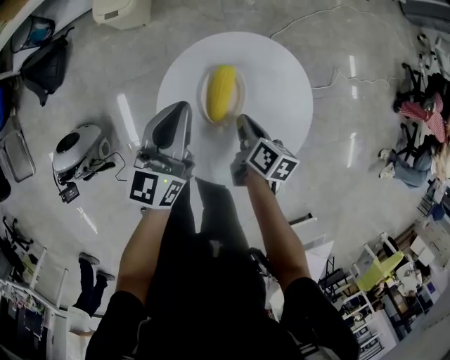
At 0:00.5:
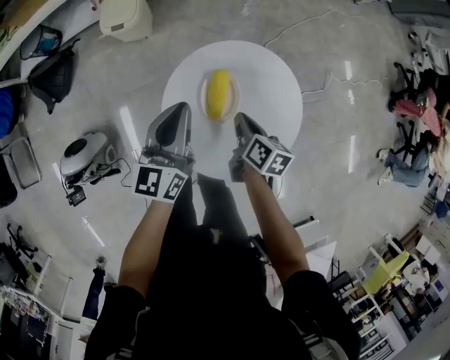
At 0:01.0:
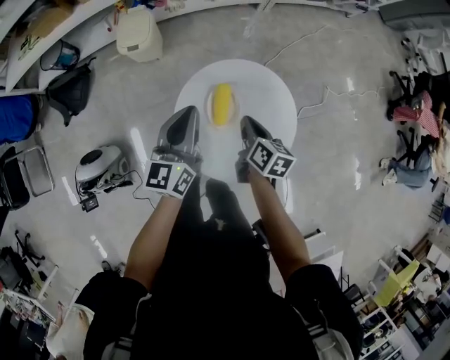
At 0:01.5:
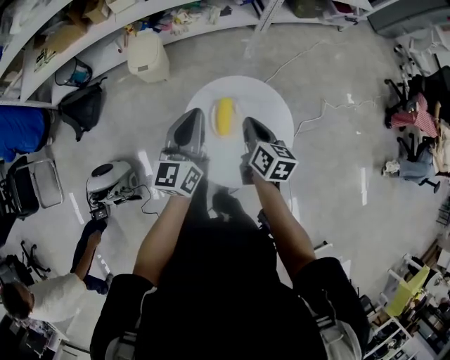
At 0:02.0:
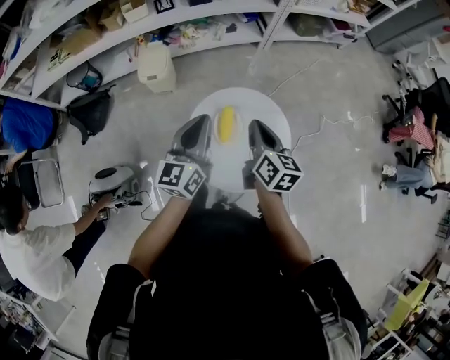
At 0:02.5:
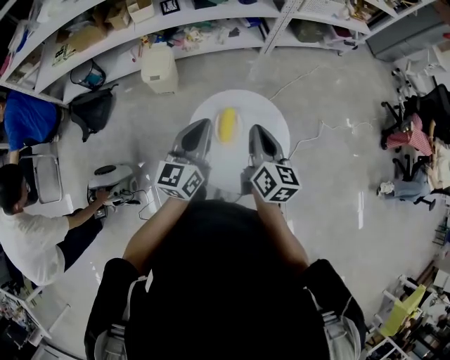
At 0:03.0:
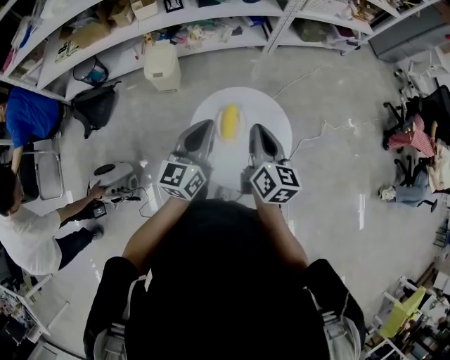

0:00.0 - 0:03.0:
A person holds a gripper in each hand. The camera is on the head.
0:00.0 - 0:01.5: The left gripper moves upward, about 15 cm.
0:01.5 - 0:03.0: The left gripper ends up roughly 5 cm from where it was.

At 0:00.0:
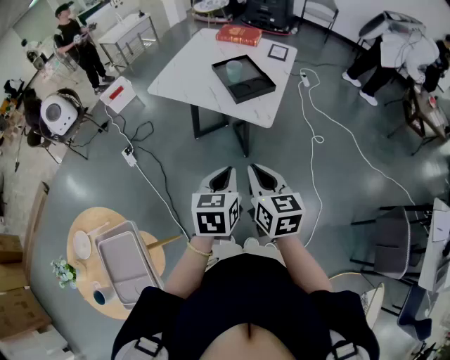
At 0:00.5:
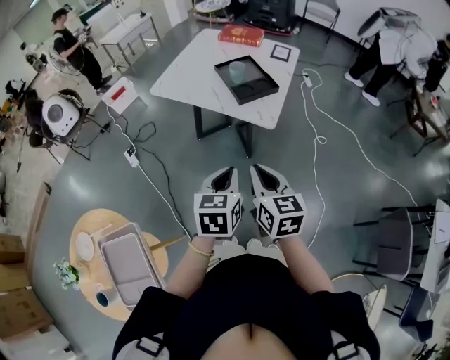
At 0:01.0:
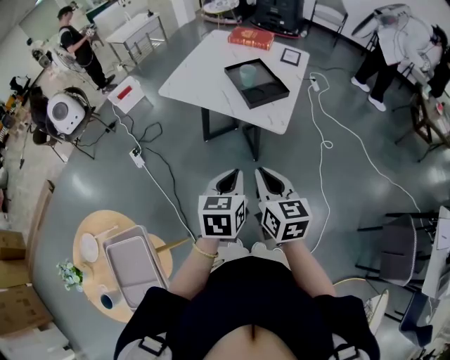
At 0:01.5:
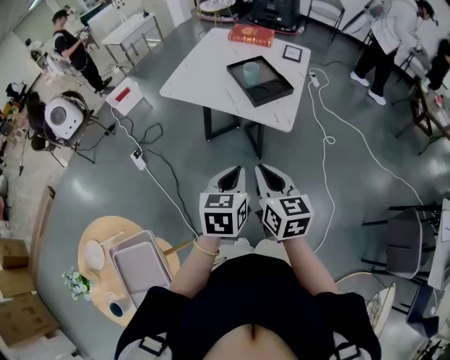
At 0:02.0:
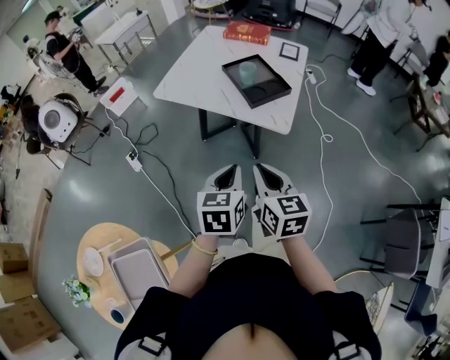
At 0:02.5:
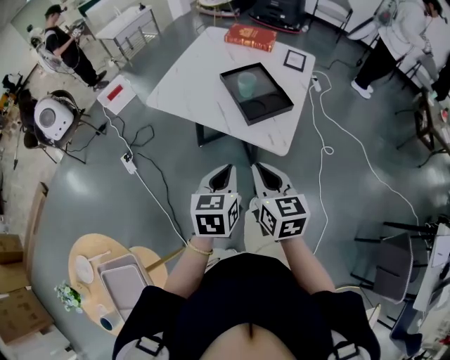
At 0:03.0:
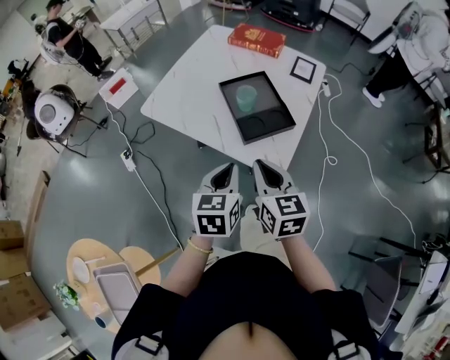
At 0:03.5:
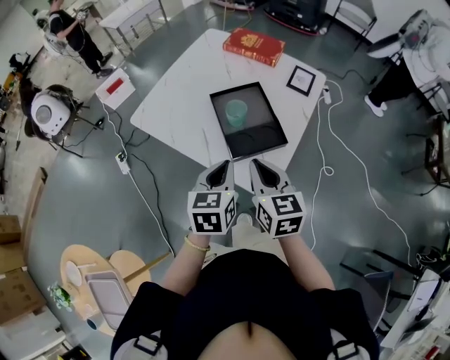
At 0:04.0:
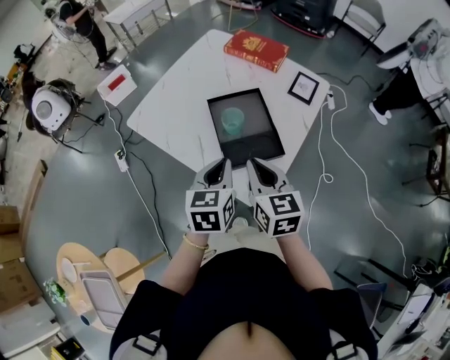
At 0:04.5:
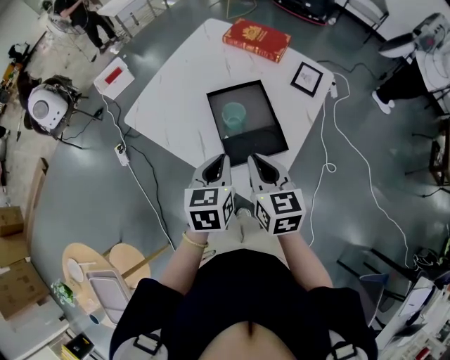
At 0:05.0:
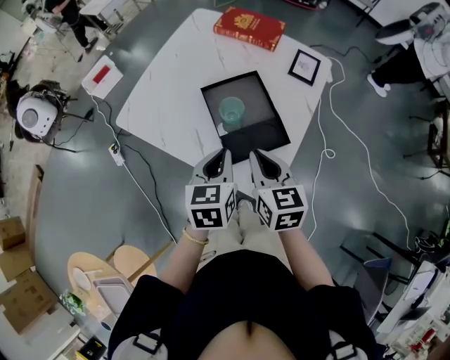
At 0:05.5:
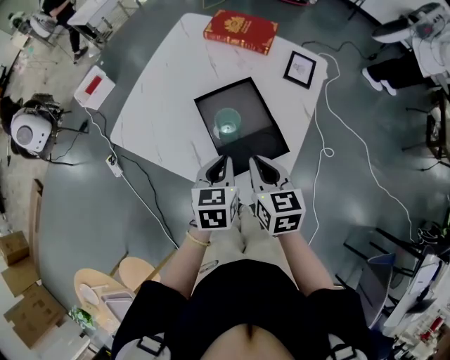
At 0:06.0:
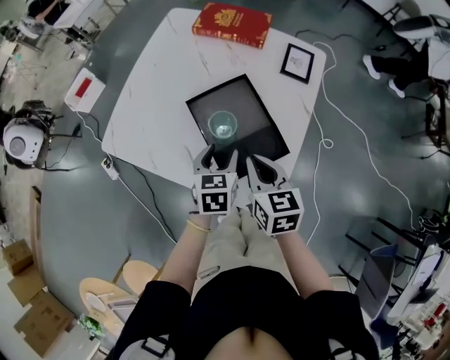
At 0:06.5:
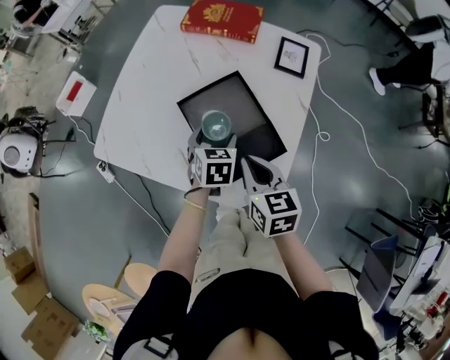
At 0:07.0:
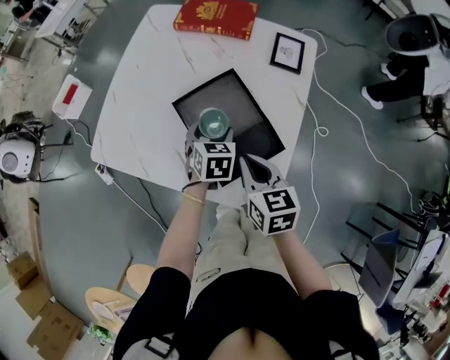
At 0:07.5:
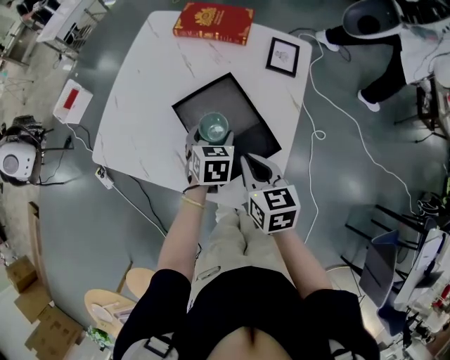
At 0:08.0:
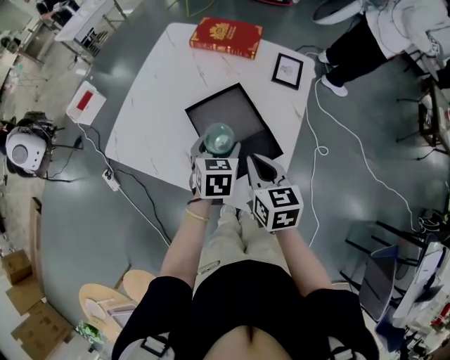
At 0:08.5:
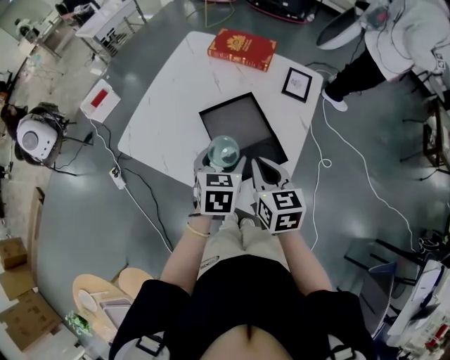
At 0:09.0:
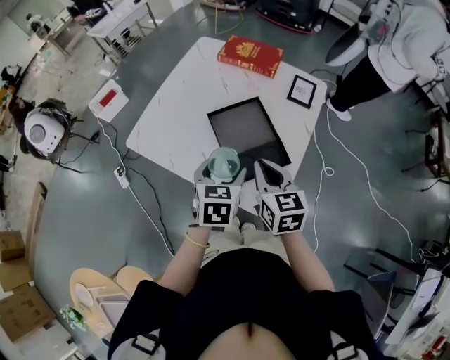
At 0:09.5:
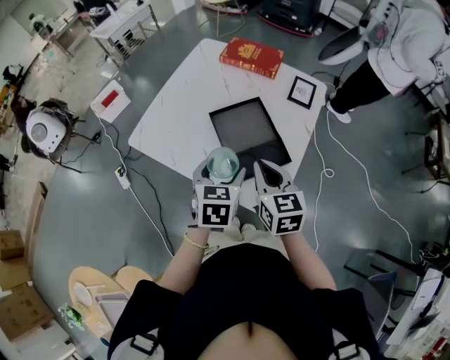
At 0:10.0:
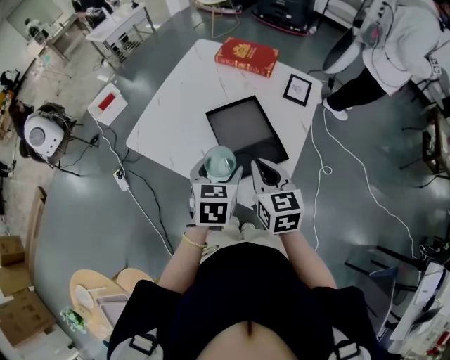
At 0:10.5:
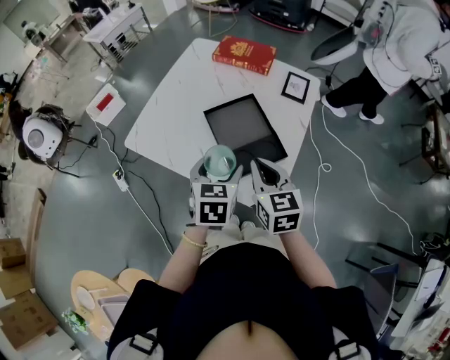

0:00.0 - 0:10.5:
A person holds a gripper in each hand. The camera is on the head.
0:00.0 - 0:02.0: Both grippers move forward and to the left, some 10 cm.
0:02.0 - 0:04.0: Both grippers travel together forward and to the right, some 35 cm.
0:04.0 - 0:06.5: The left gripper goes some 25 cm forward and downward, turns by roughly 30 degrees, and opens, while the right gripper moves downward and forward, approximately 10 cm.
0:06.5 - 0:08.5: The right gripper is displaced upward by approximately 5 cm, while the left gripper is displaced upward and backward by about 15 cm.
0:08.5 - 0:10.5: The left gripper travels backward by roughly 5 cm.

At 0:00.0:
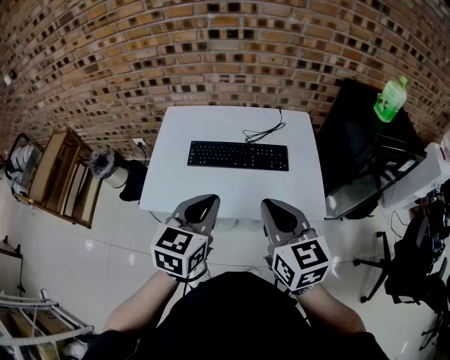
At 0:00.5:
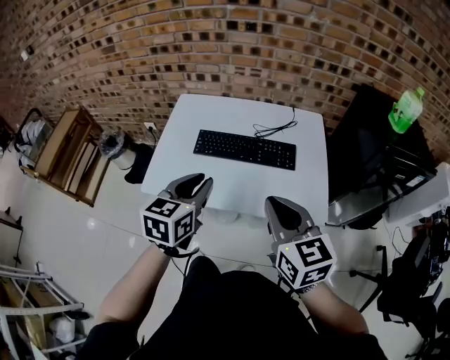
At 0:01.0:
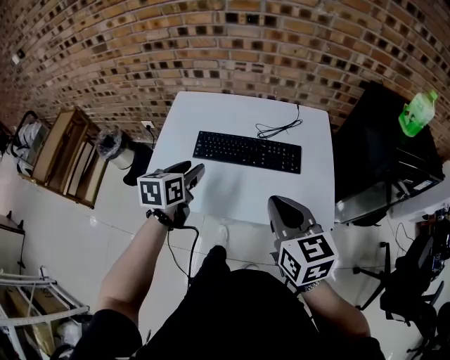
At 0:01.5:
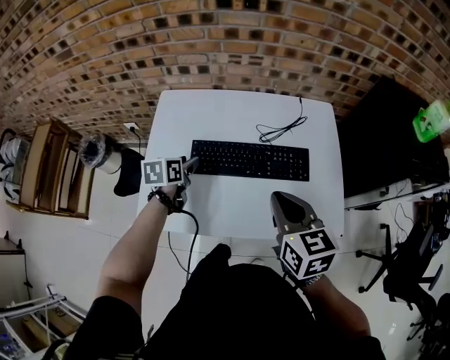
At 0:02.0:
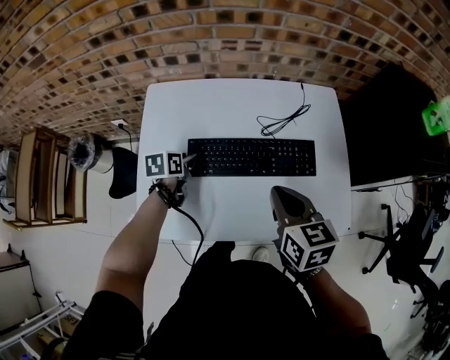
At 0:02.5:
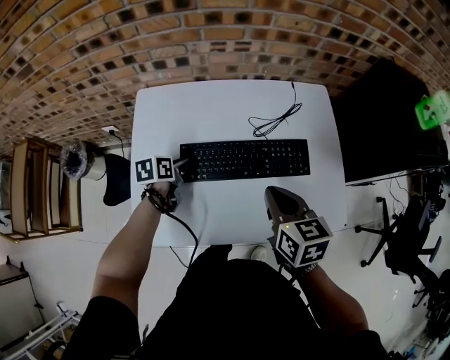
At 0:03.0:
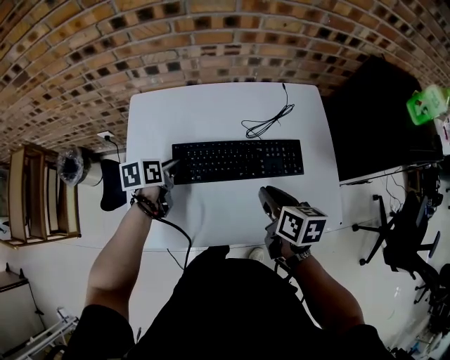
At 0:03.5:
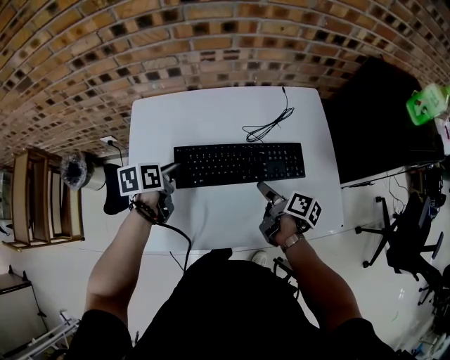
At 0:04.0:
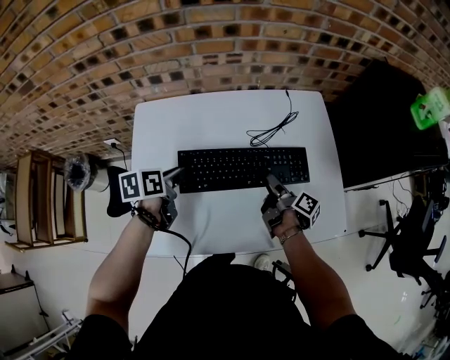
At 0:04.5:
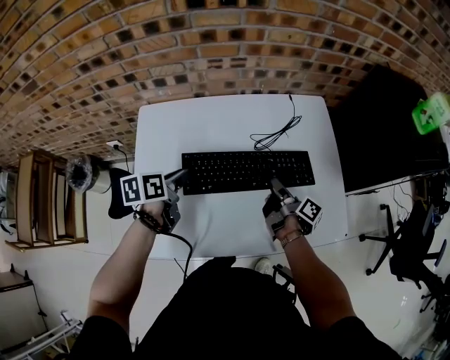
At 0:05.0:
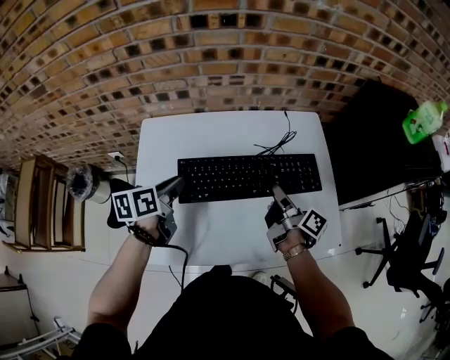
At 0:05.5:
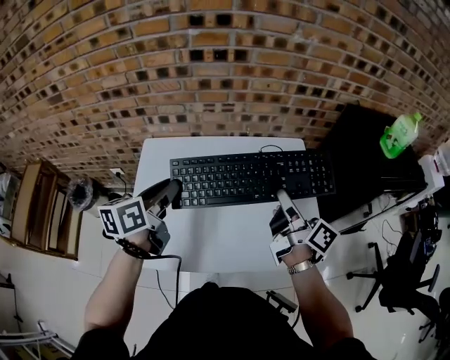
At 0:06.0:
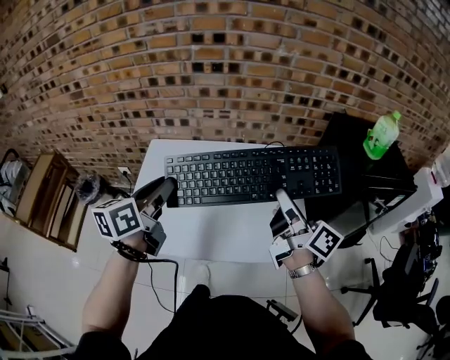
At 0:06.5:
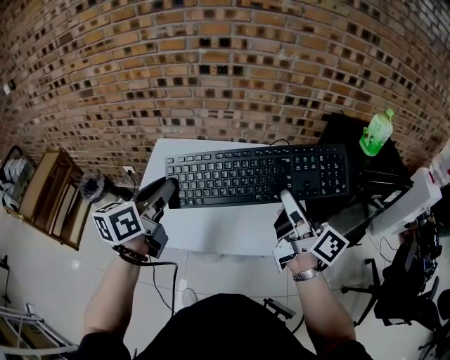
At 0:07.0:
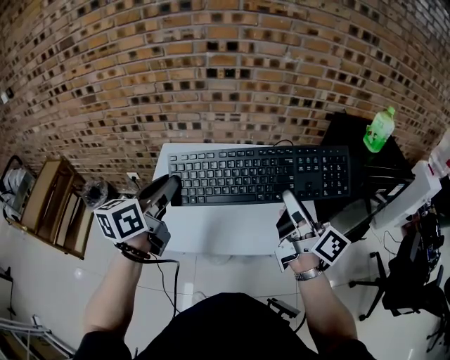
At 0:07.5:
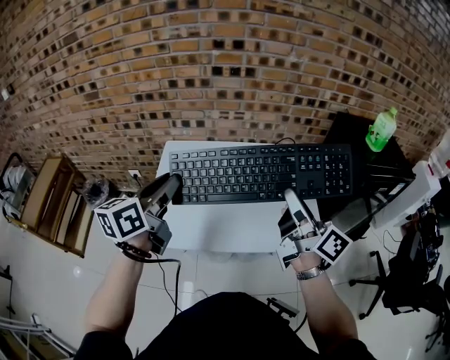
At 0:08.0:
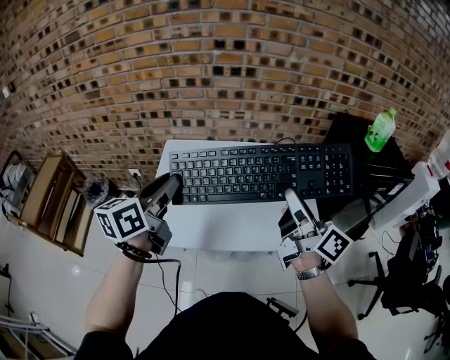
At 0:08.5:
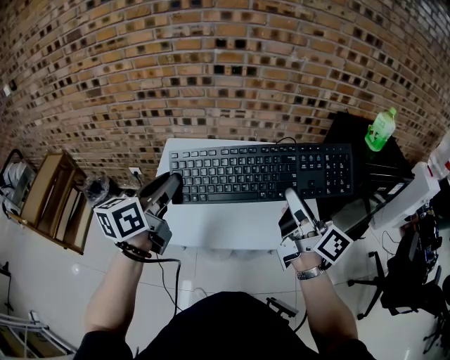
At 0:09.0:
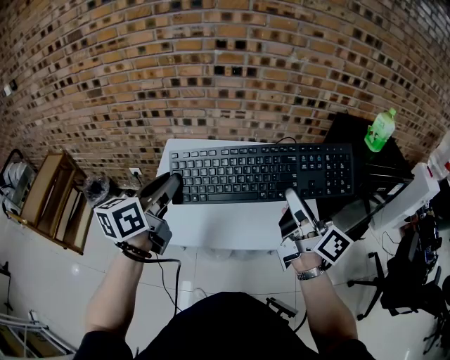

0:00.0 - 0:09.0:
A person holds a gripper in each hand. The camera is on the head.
0:00.0 - 0:02.0: The left gripper shifts about 40 cm forward, downward and to the left, rotates some 40 degrees, and opens up, while the right gripper goes roughly 25 cm forward and downward, and changes its angle by roughly 20 degrees.
0:02.0 - 0:04.5: The left gripper travels upward by some 10 cm, and closes its fingers. The right gripper moves downward and forward, some 15 cm, rolls clockwise, seen from behind, by roughly 70 degrees, and opens its fingers.
0:04.5 - 0:07.0: The two grippers go some 35 cm upward and backward. The right gripper tips its fingers upward by approximately 30 degrees. The left gripper tilts its fingers roughly 30 degrees upward.
0:07.0 - 0:09.0: The grippers make only small movements.

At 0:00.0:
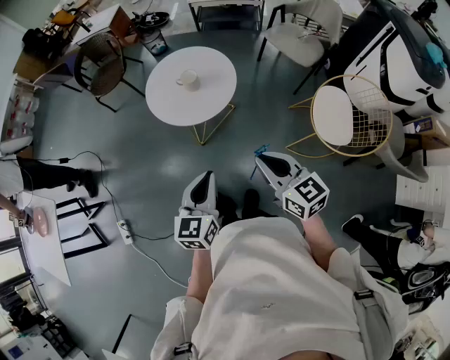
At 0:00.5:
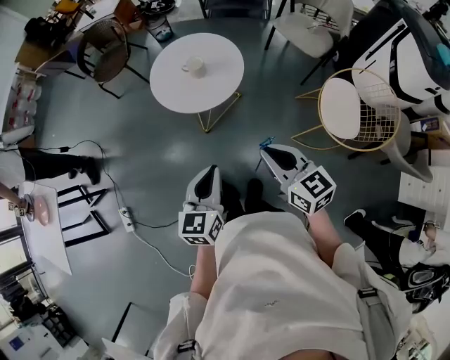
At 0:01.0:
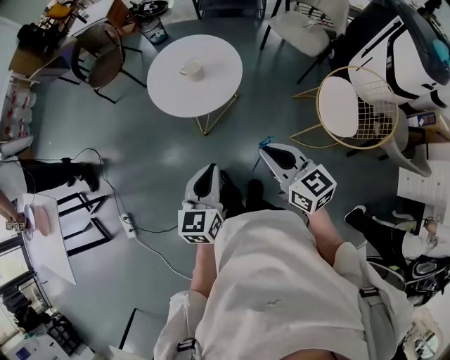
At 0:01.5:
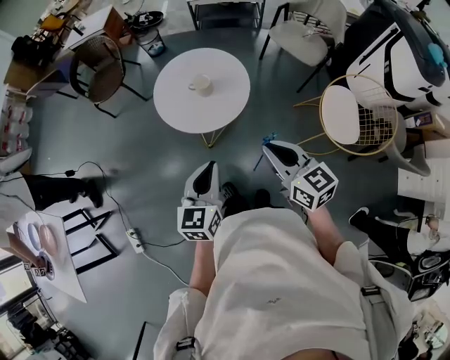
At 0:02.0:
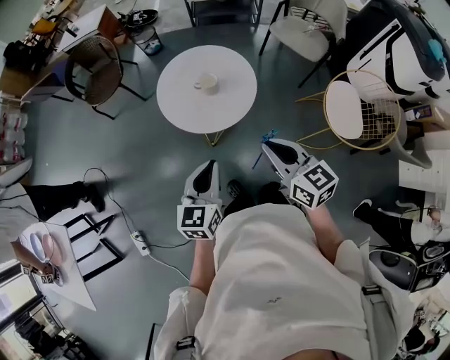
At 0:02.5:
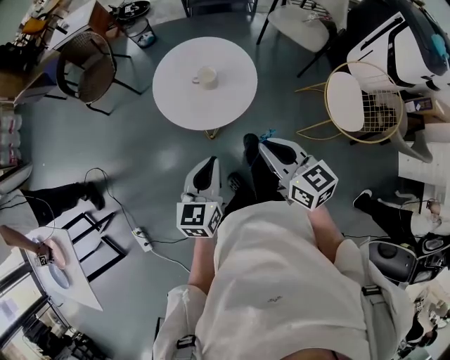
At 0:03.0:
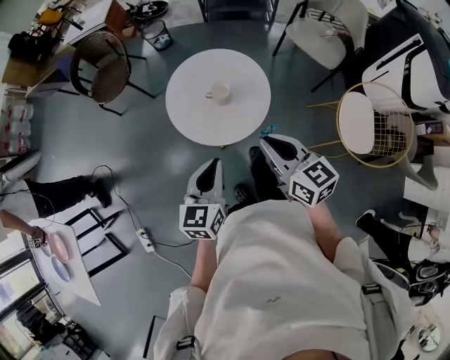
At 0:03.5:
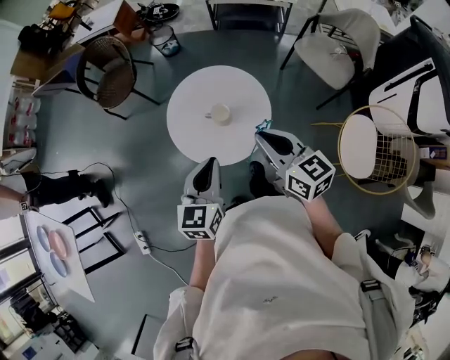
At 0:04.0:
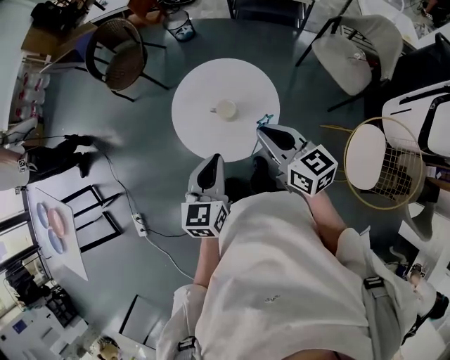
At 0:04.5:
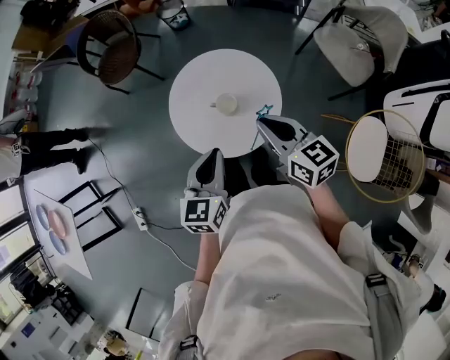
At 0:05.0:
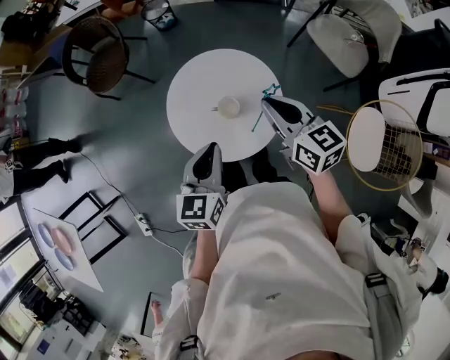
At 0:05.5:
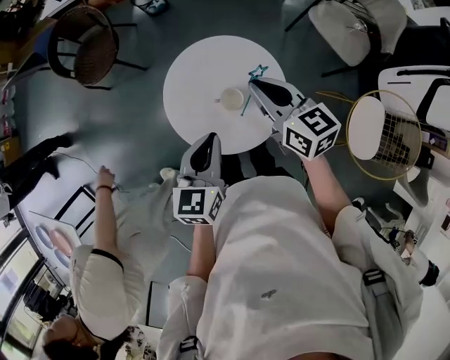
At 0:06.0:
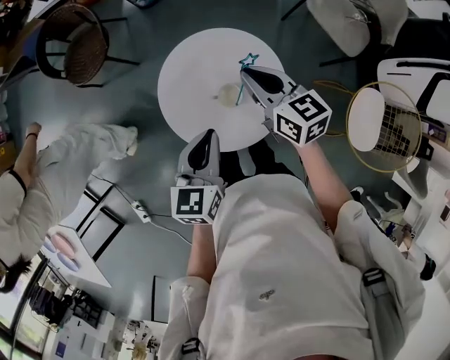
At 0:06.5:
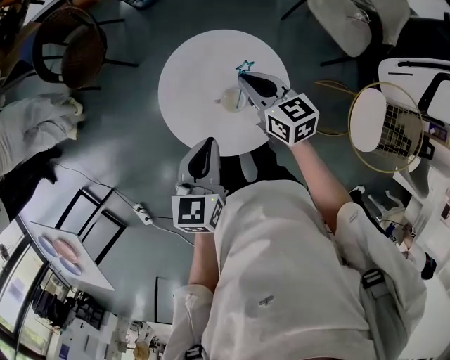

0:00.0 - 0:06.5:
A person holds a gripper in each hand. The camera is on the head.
0:00.0 - 0:02.0: The two grippers go approximately 20 cm forward and to the left.
0:02.0 - 0:04.5: The grippers both shift forward by roughly 25 cm.
0:04.5 - 0:06.5: The right gripper goes about 20 cm forward and downward; the left gripper is displaced forward by approximately 10 cm.
